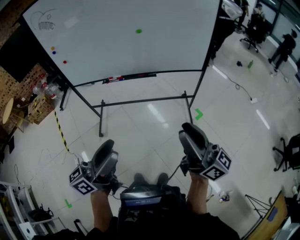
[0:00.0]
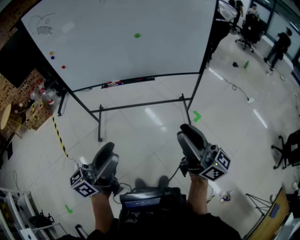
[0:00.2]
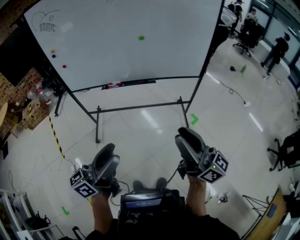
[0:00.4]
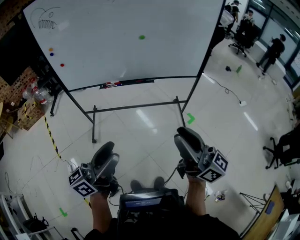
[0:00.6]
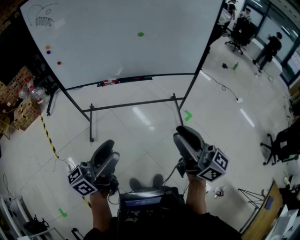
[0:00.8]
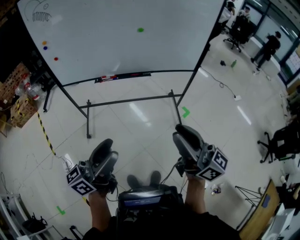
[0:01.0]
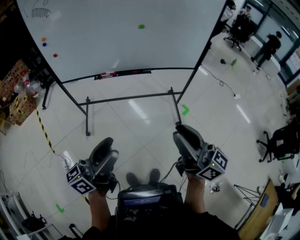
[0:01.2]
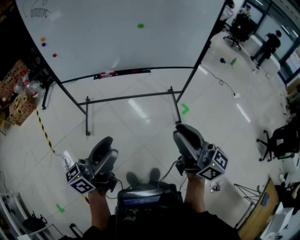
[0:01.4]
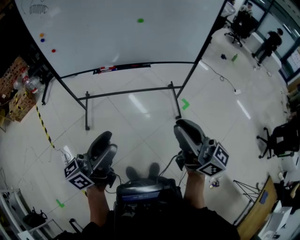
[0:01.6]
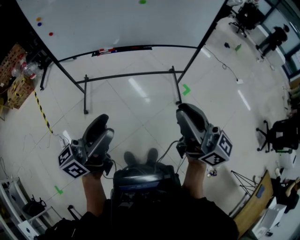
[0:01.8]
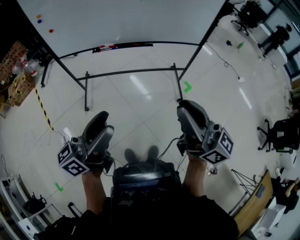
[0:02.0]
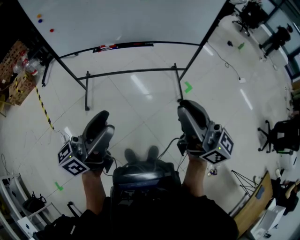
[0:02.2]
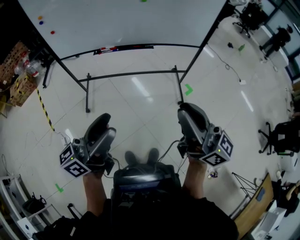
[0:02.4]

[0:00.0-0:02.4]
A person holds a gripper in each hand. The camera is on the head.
0:00.0 to 0:01.2: Both grippers travel together to the left, some 10 cm.
0:01.2 to 0:02.4: The grippers make only small movements.

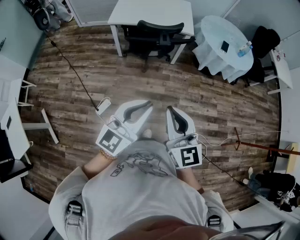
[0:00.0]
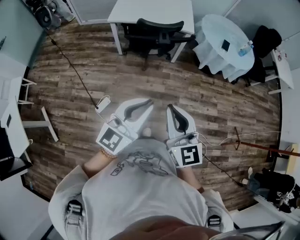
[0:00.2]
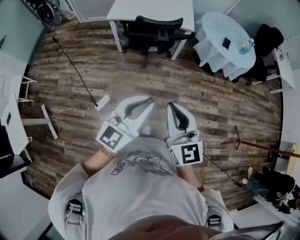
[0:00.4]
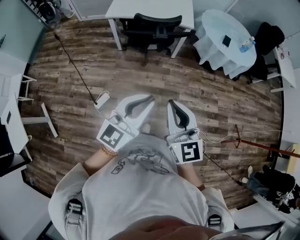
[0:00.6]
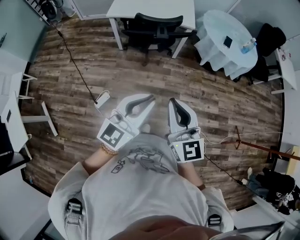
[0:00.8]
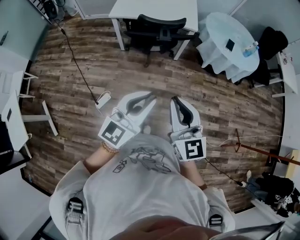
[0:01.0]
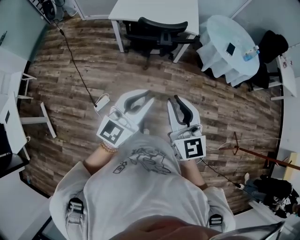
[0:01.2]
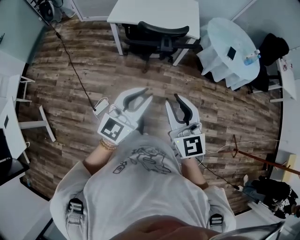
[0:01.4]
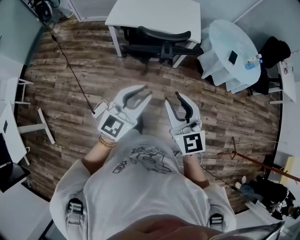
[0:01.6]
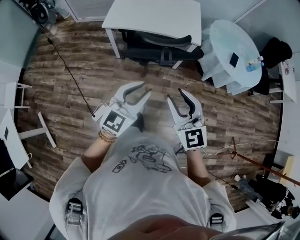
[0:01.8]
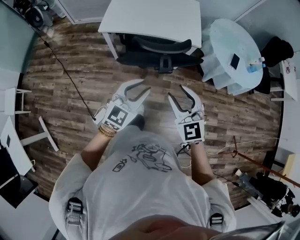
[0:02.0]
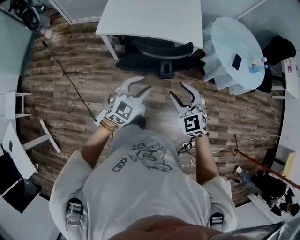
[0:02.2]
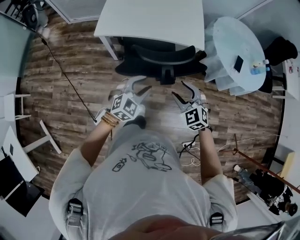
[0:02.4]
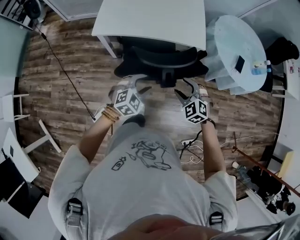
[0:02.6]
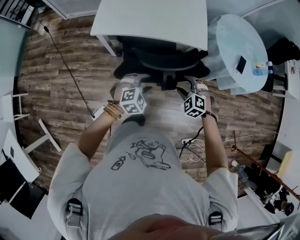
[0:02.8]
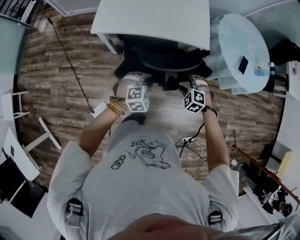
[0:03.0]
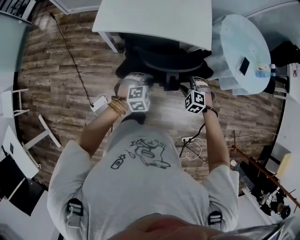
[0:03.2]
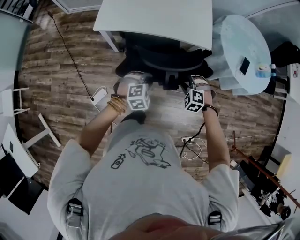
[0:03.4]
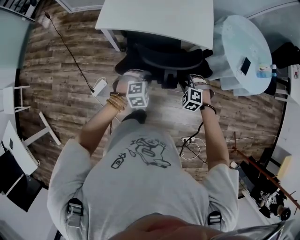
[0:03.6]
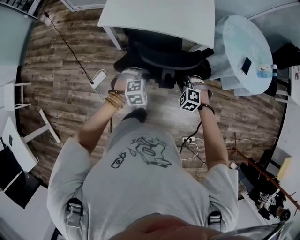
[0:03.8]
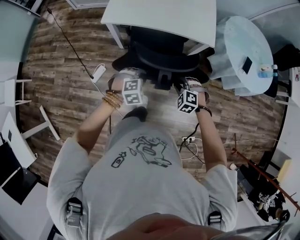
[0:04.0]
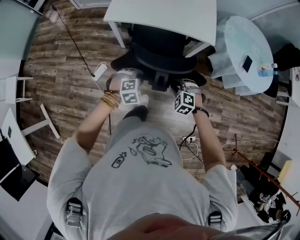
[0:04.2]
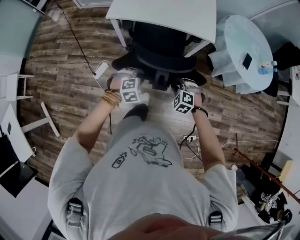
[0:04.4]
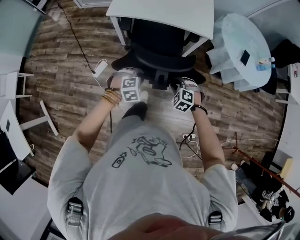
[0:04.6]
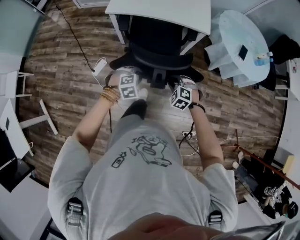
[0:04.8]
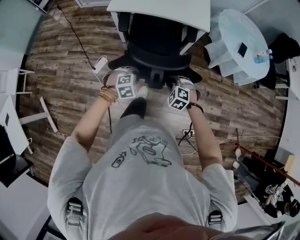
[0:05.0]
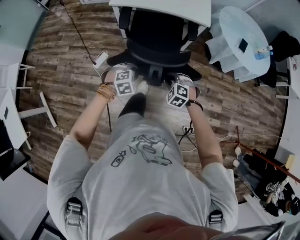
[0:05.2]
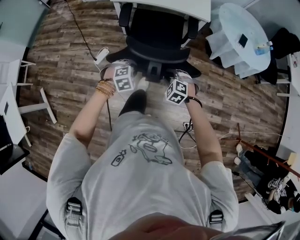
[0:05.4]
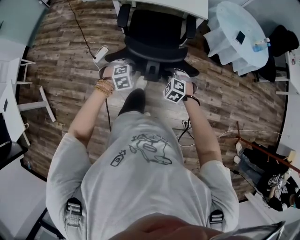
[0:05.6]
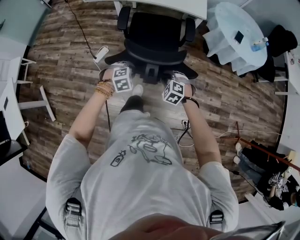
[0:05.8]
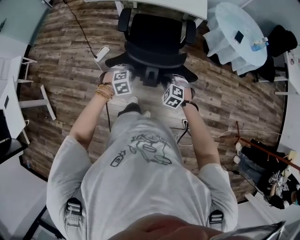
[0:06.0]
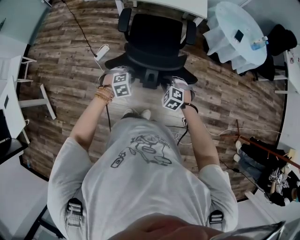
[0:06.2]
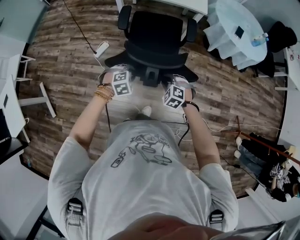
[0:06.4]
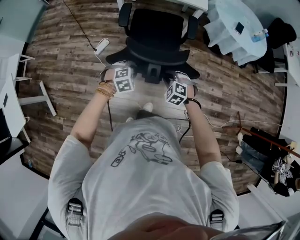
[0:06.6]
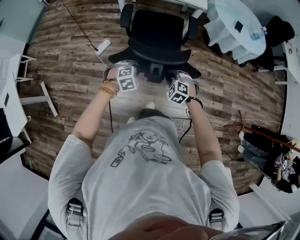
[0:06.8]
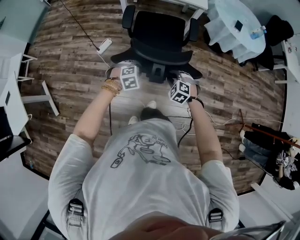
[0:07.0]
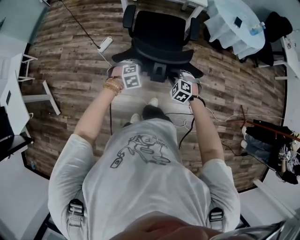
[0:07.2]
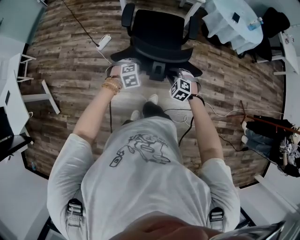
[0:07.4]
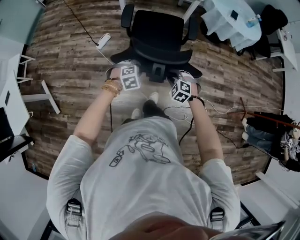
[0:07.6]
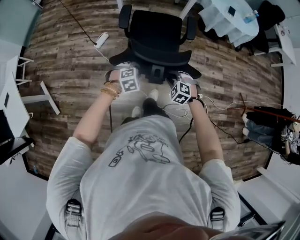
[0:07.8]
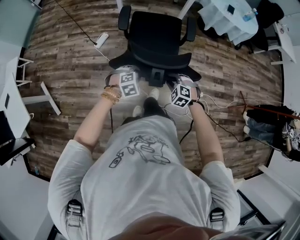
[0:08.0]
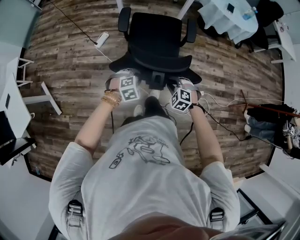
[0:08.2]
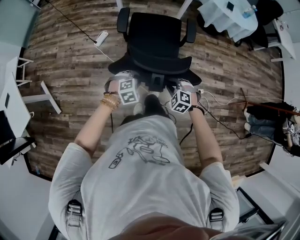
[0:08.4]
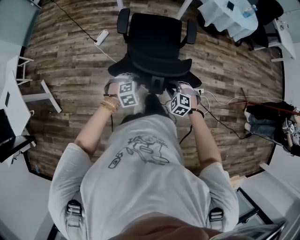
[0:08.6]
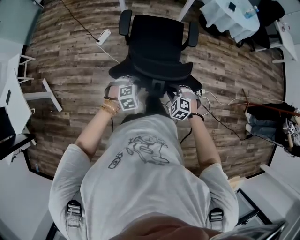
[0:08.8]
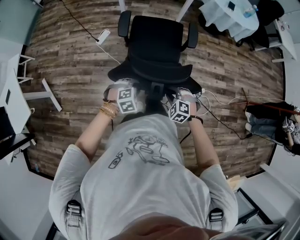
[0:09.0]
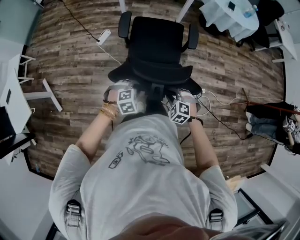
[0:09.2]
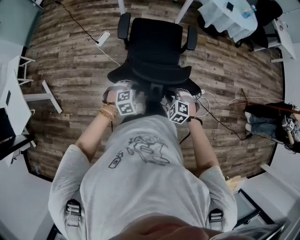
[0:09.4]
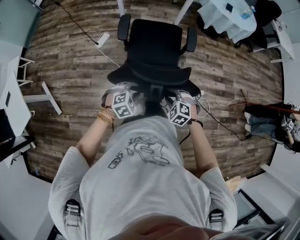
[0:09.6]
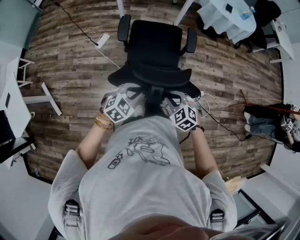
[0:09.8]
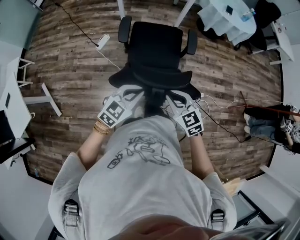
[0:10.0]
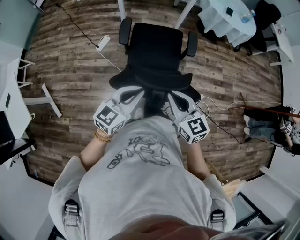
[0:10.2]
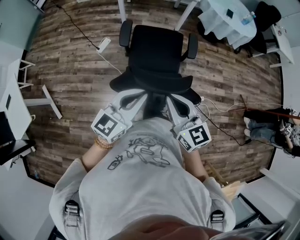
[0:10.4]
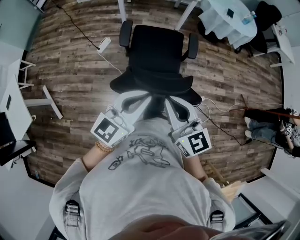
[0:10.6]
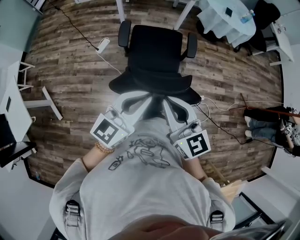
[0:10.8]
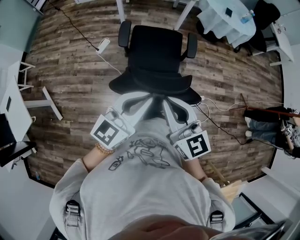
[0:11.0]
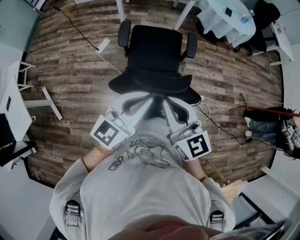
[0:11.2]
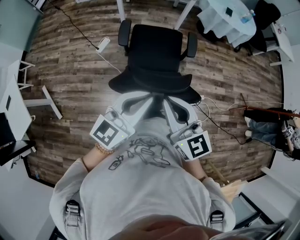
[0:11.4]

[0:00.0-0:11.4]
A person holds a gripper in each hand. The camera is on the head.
0:00.0 to 0:01.4: The two grippers go roughly 15 cm forward. The right gripper opens its fingers.
0:01.4 to 0:02.8: The two grippers travel together, forward, about 40 cm. Both grippers travel together downward, roughly 30 cm. The left gripper angles its fingers downward, by approximately 50 degrees, and opens its fingers; the right gripper tilts its fingers some 50 degrees downward, and opens.
0:02.8 to 0:04.2: The left gripper is displaced backward and to the left by roughly 10 cm, and closes, while the right gripper moves backward, approximately 10 cm, and closes its fingers.
0:04.2 to 0:05.6: The two grippers go approximately 30 cm backward.
0:05.6 to 0:07.2: Both grippers travel together backward, approximately 20 cm.
0:07.2 to 0:08.6: Both grippers travel together backward, some 20 cm.
0:08.6 to 0:10.0: Both grippers travel together upward, roughly 15 cm. The left gripper angles its fingers upward, by about 40 degrees, and closes. Meanwhile the right gripper swivels some 40 degrees.
0:10.0 to 0:11.4: Both grippers travel together upward, some 15 cm. The left gripper changes its angle by approximately 30 degrees. The right gripper turns by about 30 degrees.

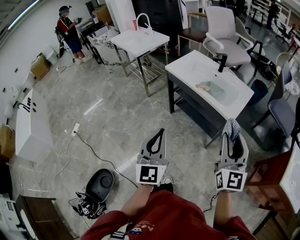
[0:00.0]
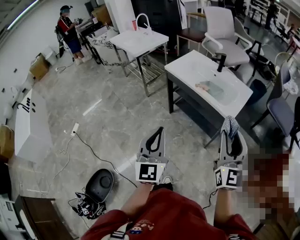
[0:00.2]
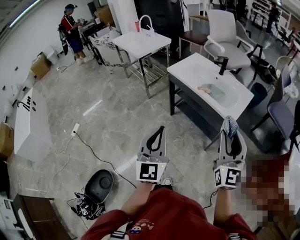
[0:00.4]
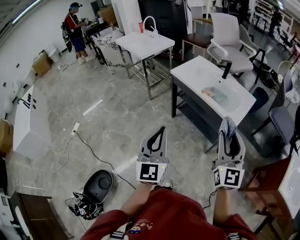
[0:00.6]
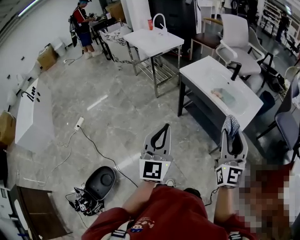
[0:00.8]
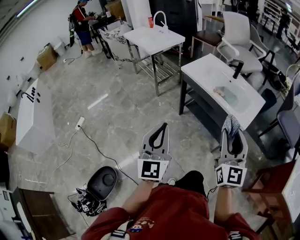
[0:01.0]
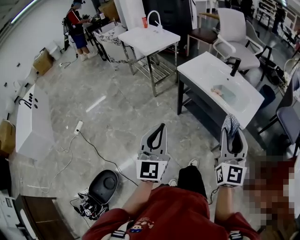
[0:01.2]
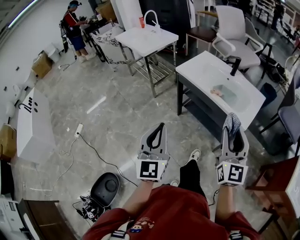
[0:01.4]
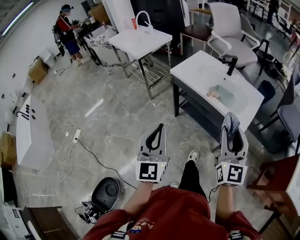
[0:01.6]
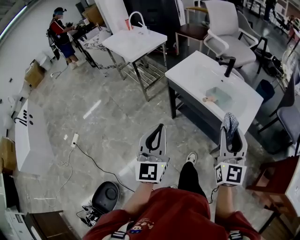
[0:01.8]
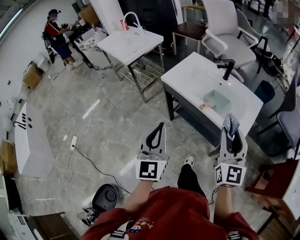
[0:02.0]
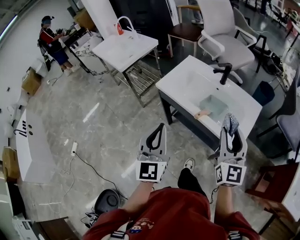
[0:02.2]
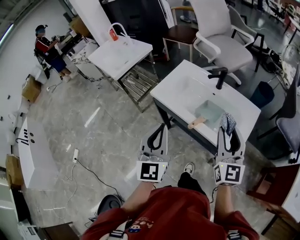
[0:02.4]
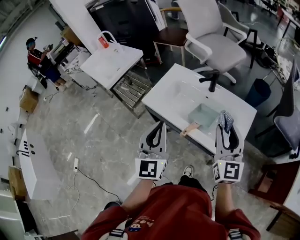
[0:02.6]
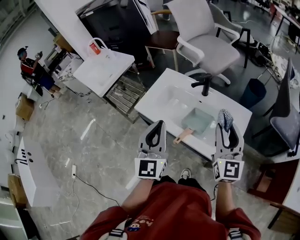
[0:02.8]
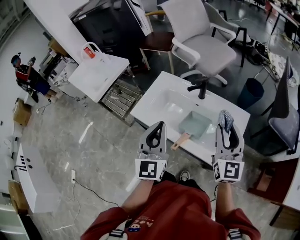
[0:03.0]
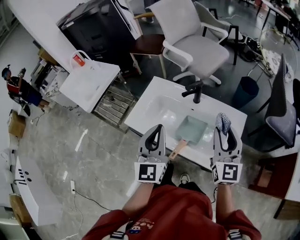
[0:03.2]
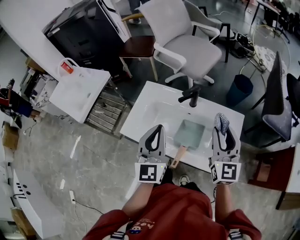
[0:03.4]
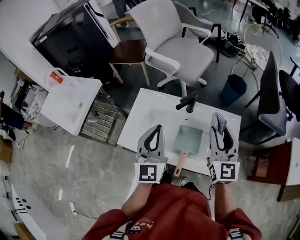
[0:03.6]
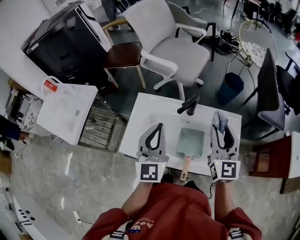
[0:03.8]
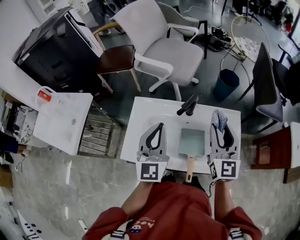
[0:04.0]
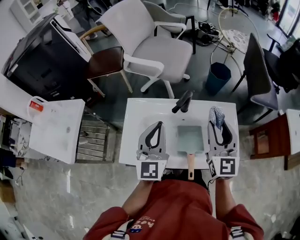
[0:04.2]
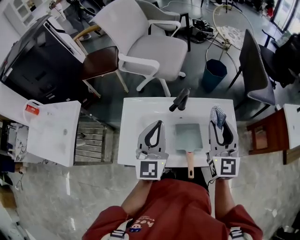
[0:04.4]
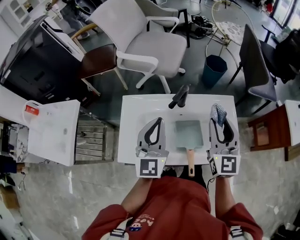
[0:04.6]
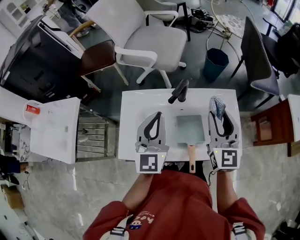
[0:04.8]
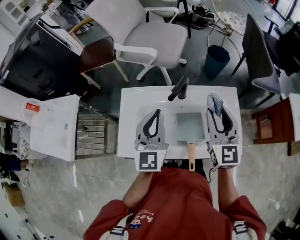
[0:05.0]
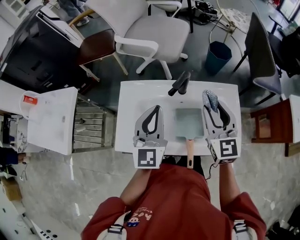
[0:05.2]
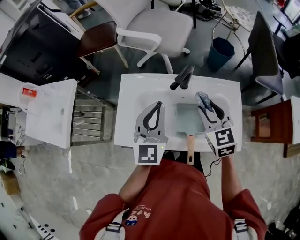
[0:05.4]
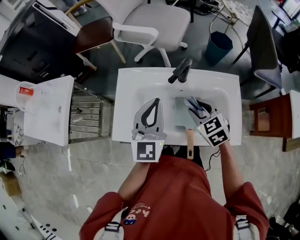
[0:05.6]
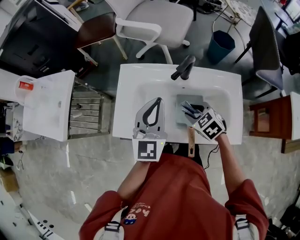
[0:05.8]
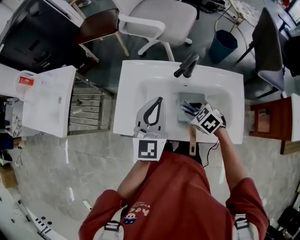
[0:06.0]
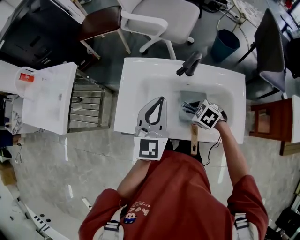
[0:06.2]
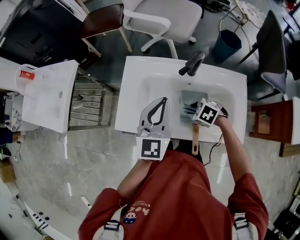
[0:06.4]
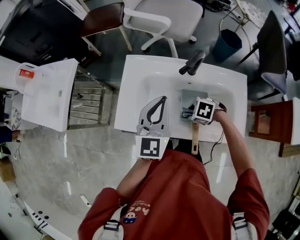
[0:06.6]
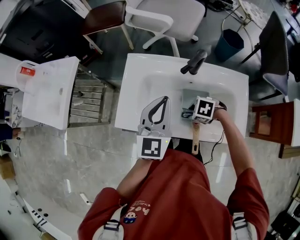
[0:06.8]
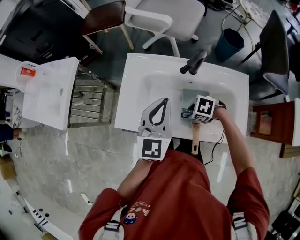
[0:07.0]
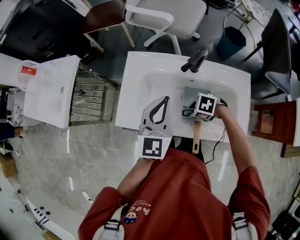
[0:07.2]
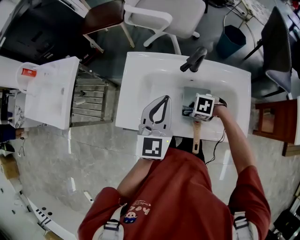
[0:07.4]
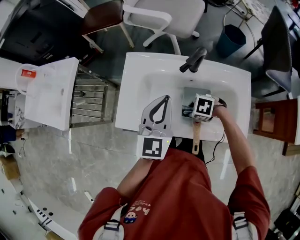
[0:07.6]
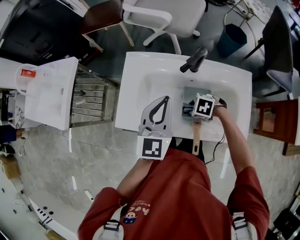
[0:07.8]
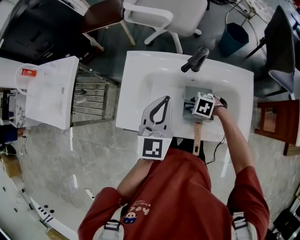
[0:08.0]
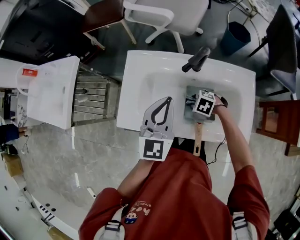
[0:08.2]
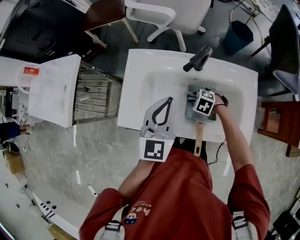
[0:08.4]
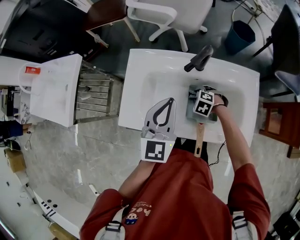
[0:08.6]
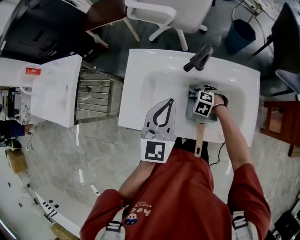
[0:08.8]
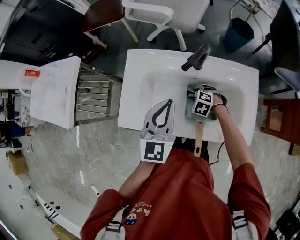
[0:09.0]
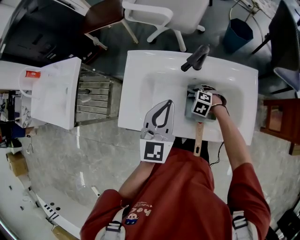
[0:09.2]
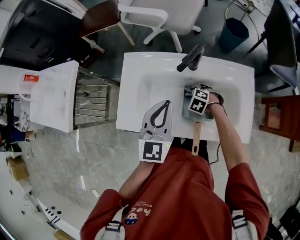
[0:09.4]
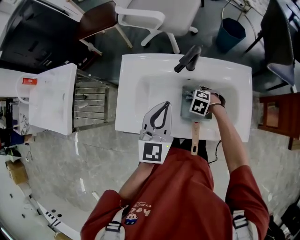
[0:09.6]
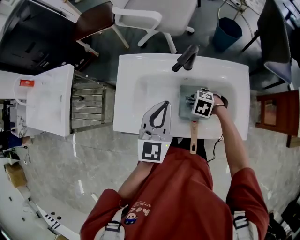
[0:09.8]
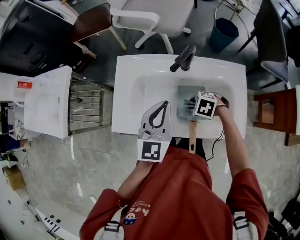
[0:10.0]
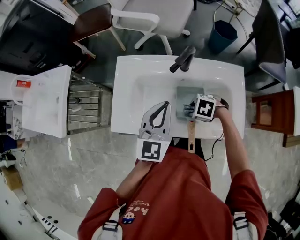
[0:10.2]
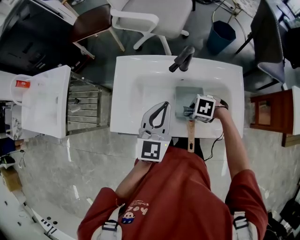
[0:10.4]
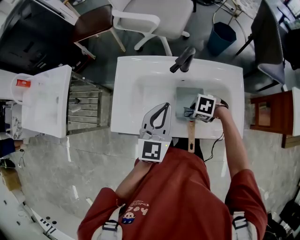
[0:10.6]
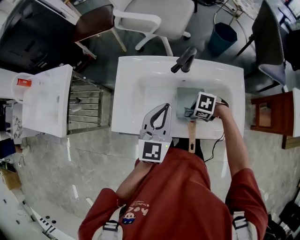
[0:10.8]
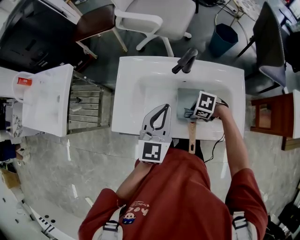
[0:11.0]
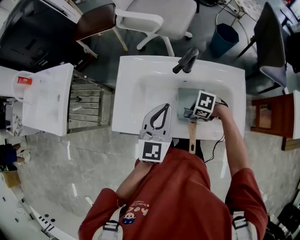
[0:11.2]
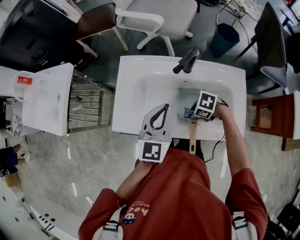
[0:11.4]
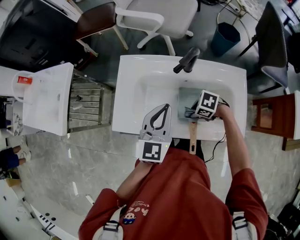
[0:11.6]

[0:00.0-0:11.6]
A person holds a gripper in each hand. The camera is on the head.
0:00.0 to 0:01.4: The grippers both shift to the left and forward by about 10 cm.
0:01.4 to 0:02.8: The grippers both shift forward and to the right by roughly 40 cm.
0:02.8 to 0:04.4: The right gripper changes place by roughly 10 cm, and turns by about 30 degrees. Meanwhile the left gripper changes place by roughly 25 cm, and changes its angle by some 30 degrees.
0:04.4 to 0:05.8: The right gripper shifts about 25 cm downward, and tips its fingers downward by about 50 degrees.
0:05.8 to 0:07.2: The right gripper moves downward, about 10 cm, and swivels roughly 40 degrees.
0:07.2 to 0:08.8: The right gripper moves some 10 cm, and swivels approximately 30 degrees.
0:08.8 to 0:10.2: The right gripper shifts by about 10 cm, and turns by approximately 20 degrees.
0:10.2 to 0:11.6: The grippers make only small movements.
